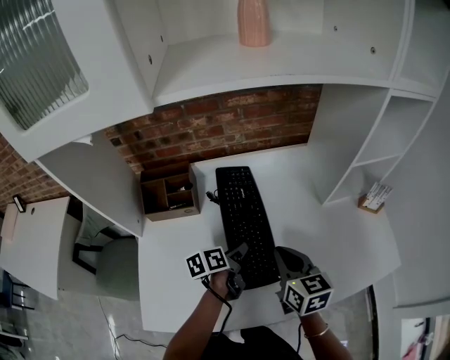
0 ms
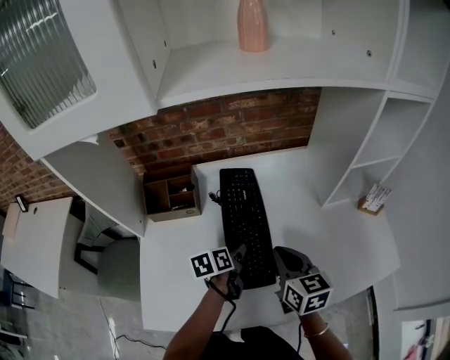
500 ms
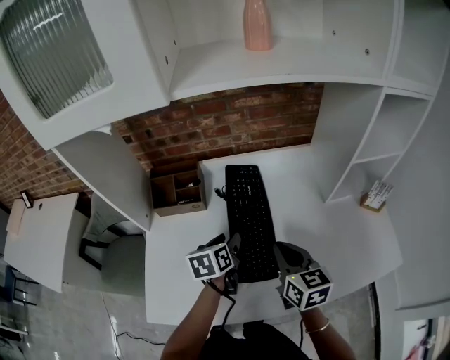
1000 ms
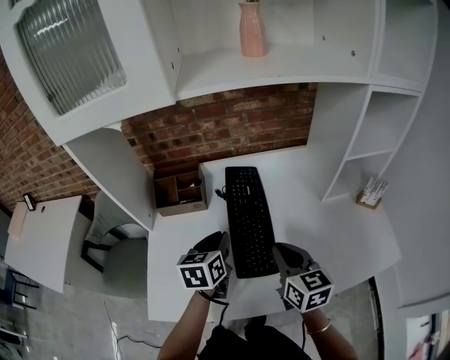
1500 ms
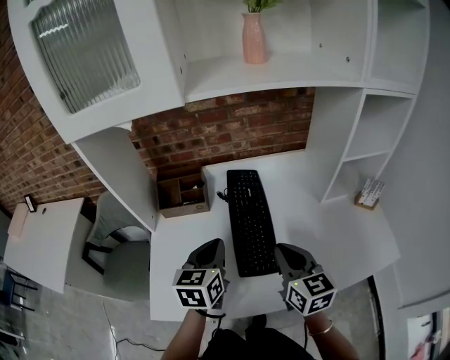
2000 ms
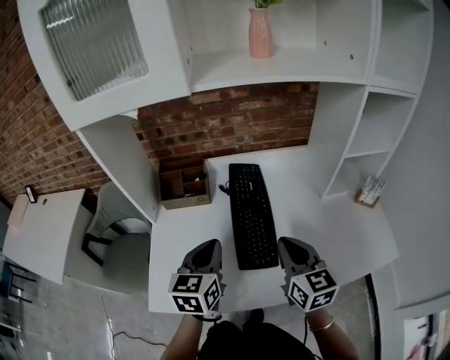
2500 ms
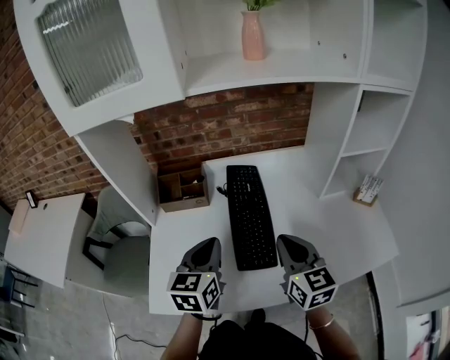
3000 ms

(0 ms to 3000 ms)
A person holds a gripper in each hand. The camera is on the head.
0 ms - 1500 ms: The left gripper moves upward and to the left, roughly 15 cm, and swivels some 40 degrees; the right gripper changes place by roughly 5 cm.
1500 ms - 3000 ms: The left gripper goes about 10 cm backward and upward.

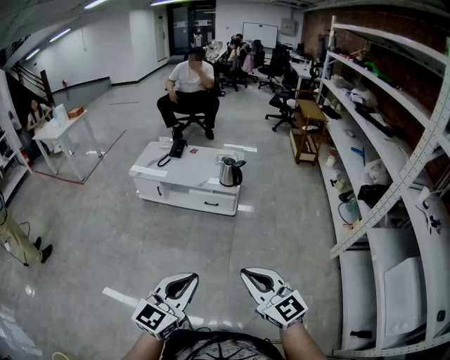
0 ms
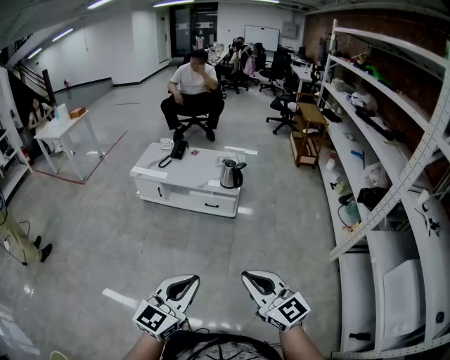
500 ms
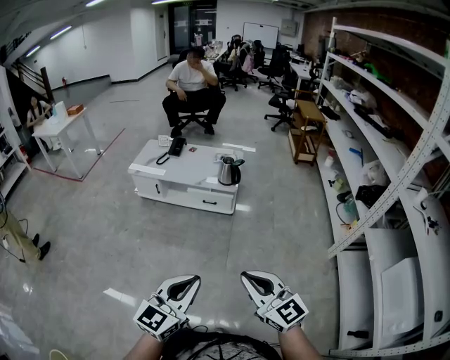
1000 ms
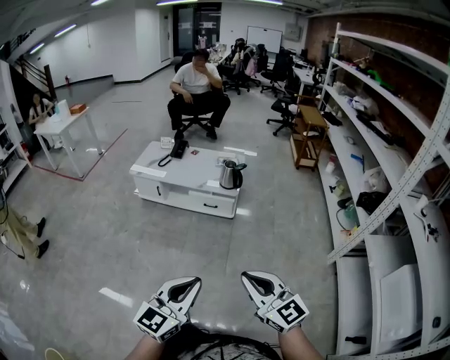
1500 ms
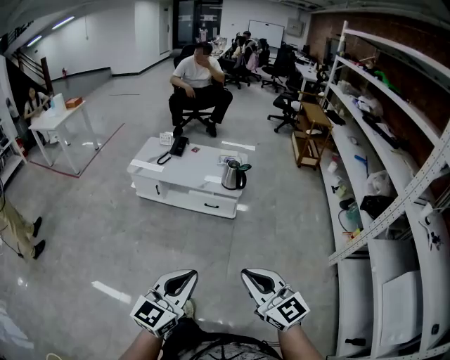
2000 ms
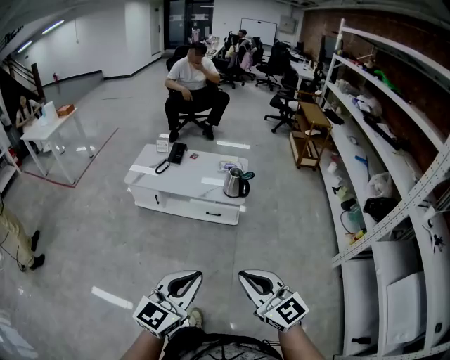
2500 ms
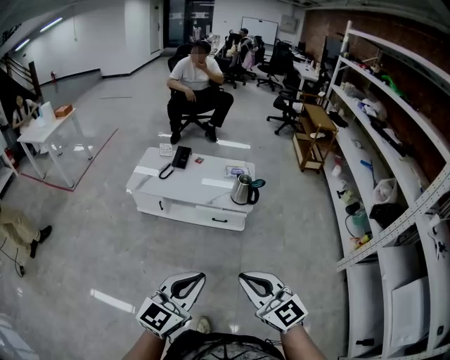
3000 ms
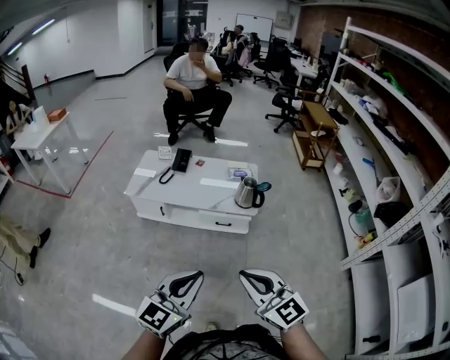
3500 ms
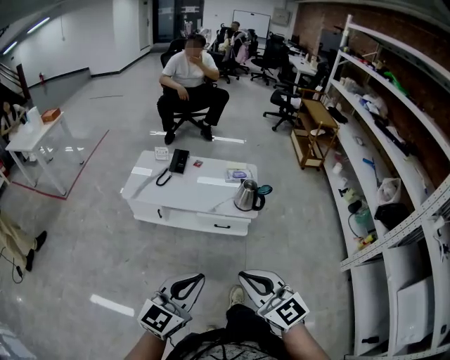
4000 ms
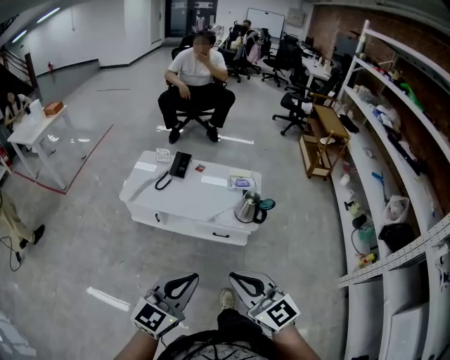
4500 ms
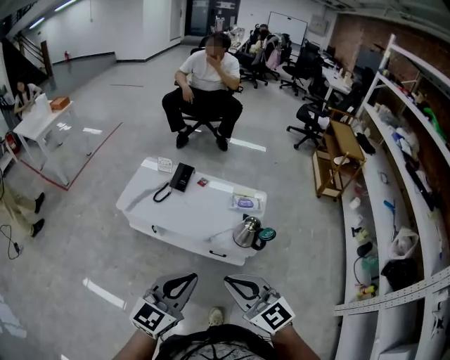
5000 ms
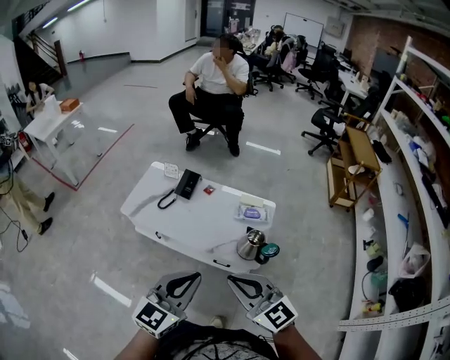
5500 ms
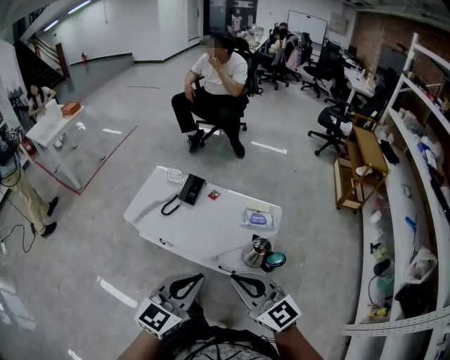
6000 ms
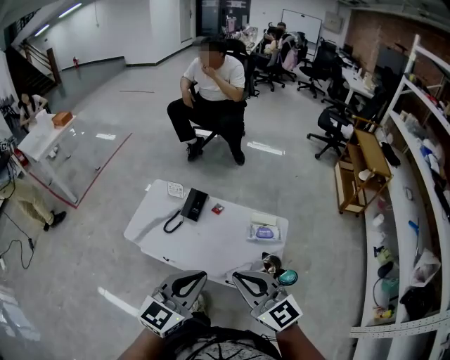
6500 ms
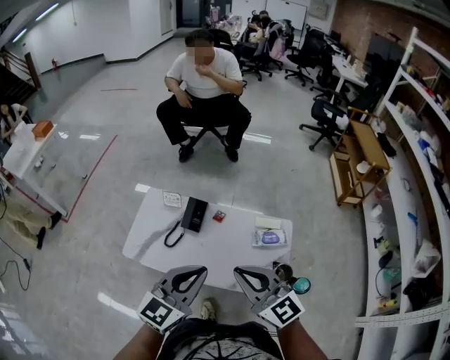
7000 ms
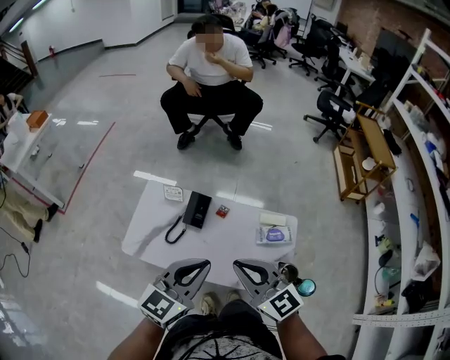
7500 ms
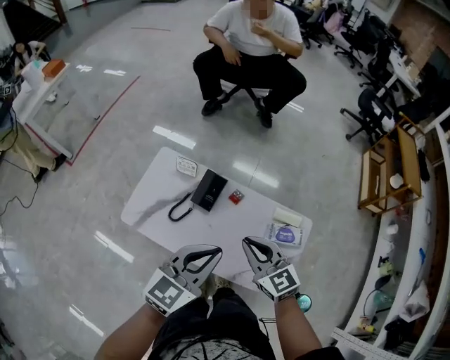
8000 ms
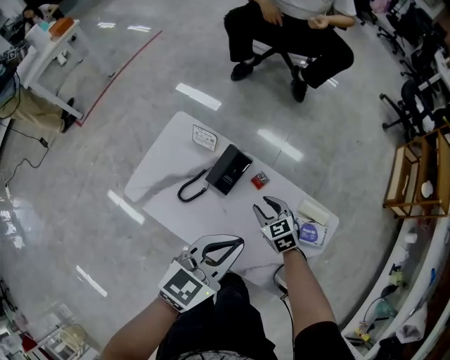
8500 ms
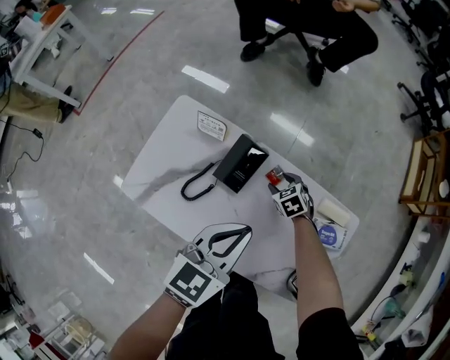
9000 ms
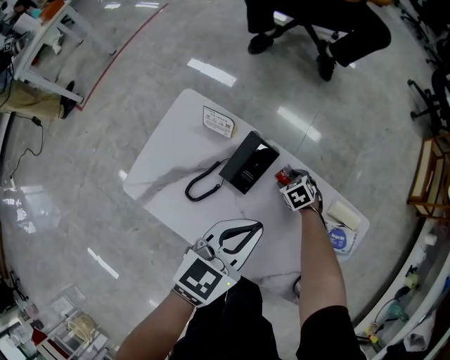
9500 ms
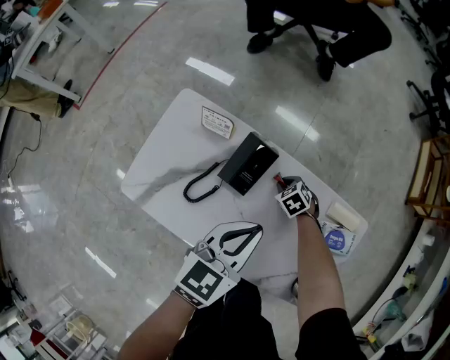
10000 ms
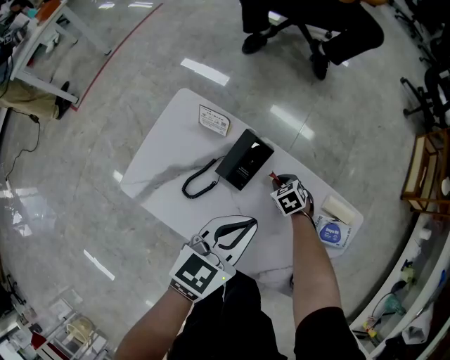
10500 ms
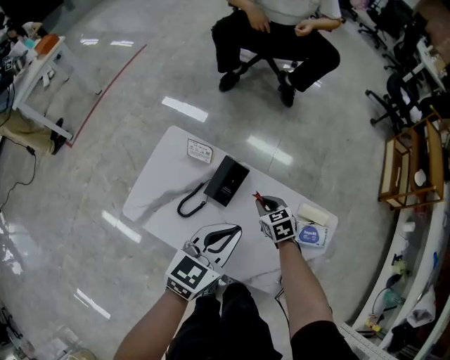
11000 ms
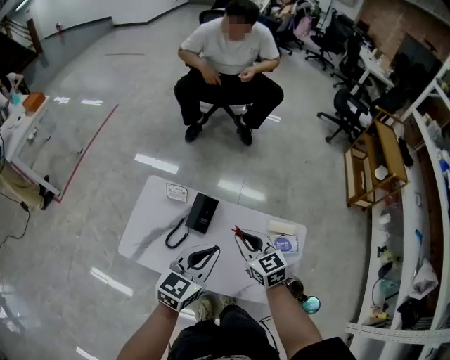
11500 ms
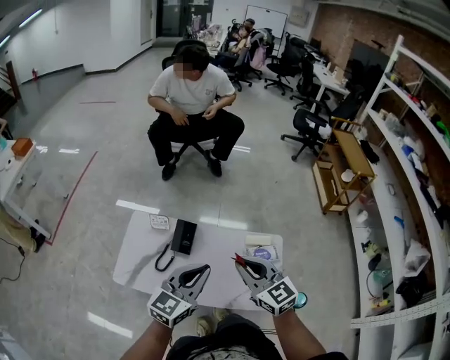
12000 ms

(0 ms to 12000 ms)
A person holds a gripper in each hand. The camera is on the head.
0 ms - 2000 ms: Both grippers move forward, approximately 5 cm.
2000 ms - 4000 ms: Both grippers travel together forward and to the left, about 30 cm.
4000 ms - 6000 ms: Both grippers move forward, some 35 cm.
6000 ms - 8000 ms: The two grippers go approximately 35 cm forward. The right gripper turns by approximately 20 degrees.
8000 ms - 10000 ms: The right gripper is displaced downward and forward by about 50 cm, tilts its fingers about 50 degrees downward, and opens and closes again. The left gripper travels downward and forward by some 25 cm.
10000 ms - 12000 ms: The left gripper heads upward and backward, covering approximately 30 cm, and swivels roughly 30 degrees; the right gripper moves upward and backward, roughly 60 cm, and points its fingers some 60 degrees further upward.

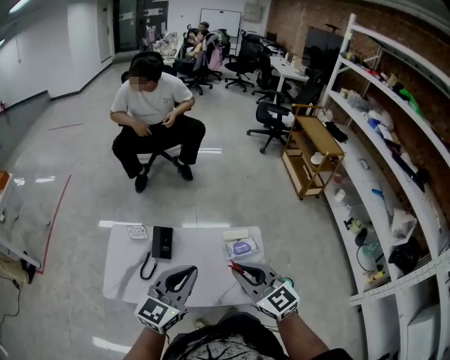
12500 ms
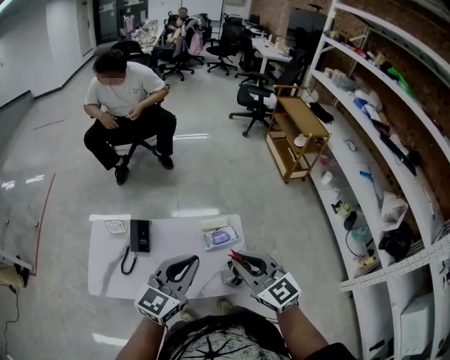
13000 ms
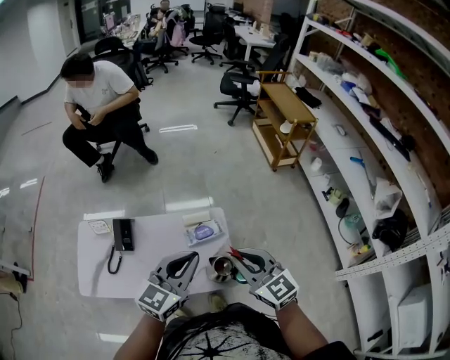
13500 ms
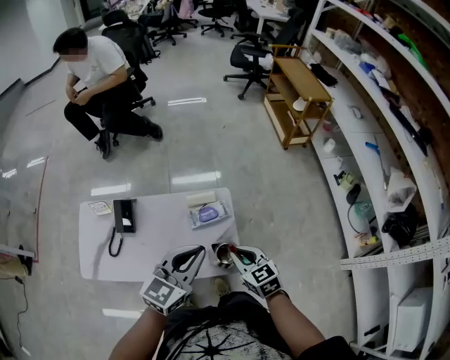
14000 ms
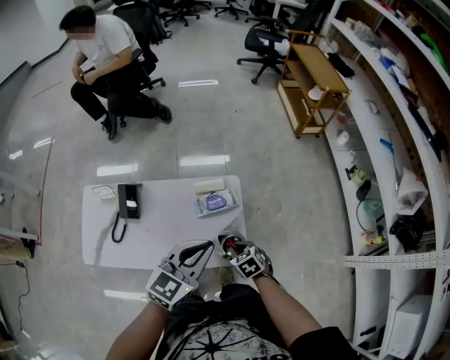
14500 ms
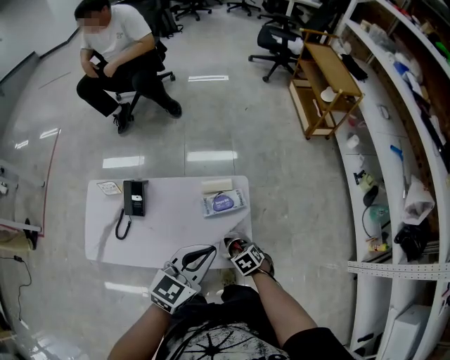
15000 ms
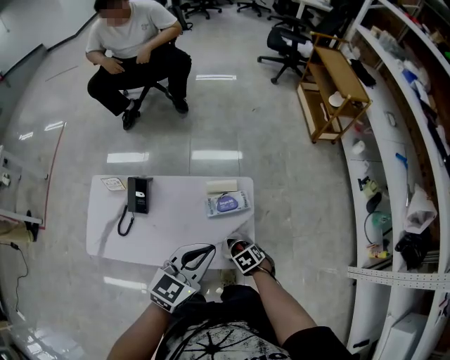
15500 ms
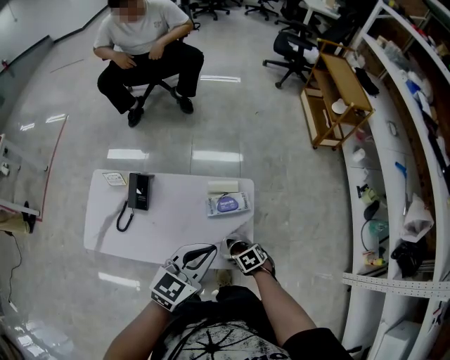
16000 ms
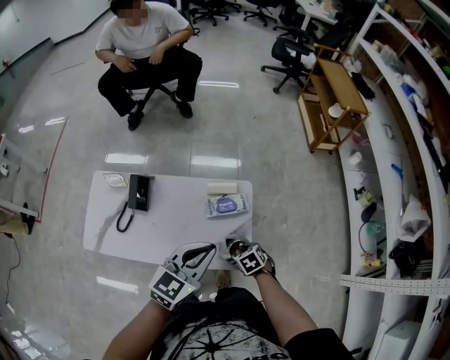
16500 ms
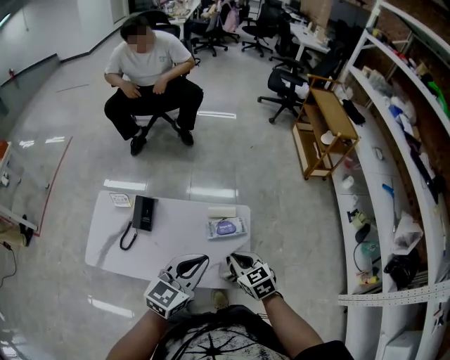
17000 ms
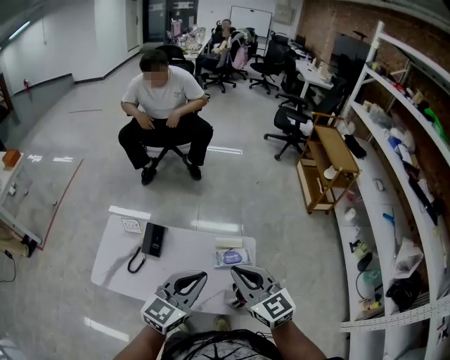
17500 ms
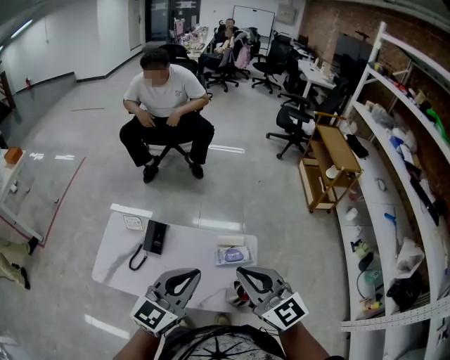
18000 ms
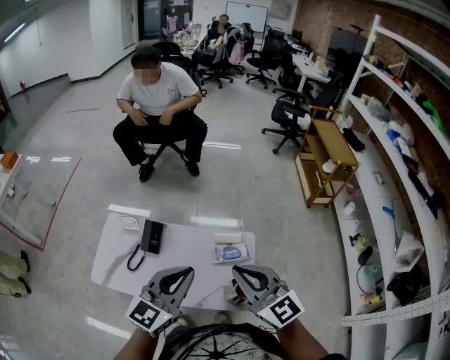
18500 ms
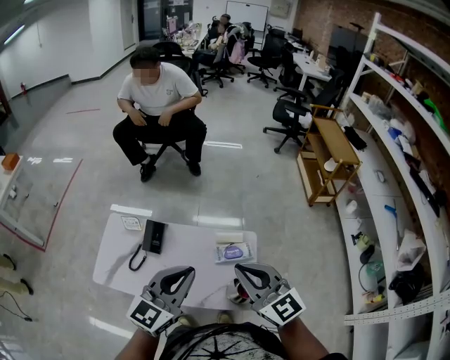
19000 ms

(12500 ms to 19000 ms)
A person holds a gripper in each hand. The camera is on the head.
12500 ms - 14500 ms: The left gripper shifts some 25 cm to the right. The right gripper shifts approximately 40 cm downward and to the right, and angles its fingers downward, by some 50 degrees.
14500 ms - 17000 ms: The right gripper is displaced upward by about 15 cm, turns by roughly 20 degrees, and opens, then closes once more. The left gripper ends up about 5 cm from where it was.
17000 ms - 19000 ms: The left gripper travels upward and to the left by approximately 10 cm, while the right gripper travels upward by some 25 cm, and points its fingers some 40 degrees further upward.

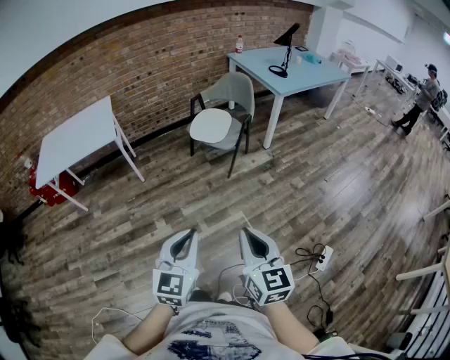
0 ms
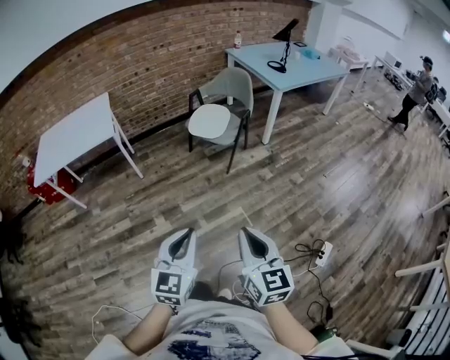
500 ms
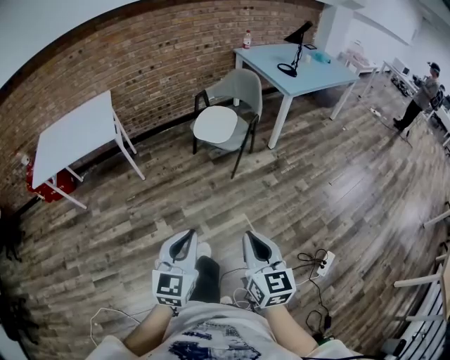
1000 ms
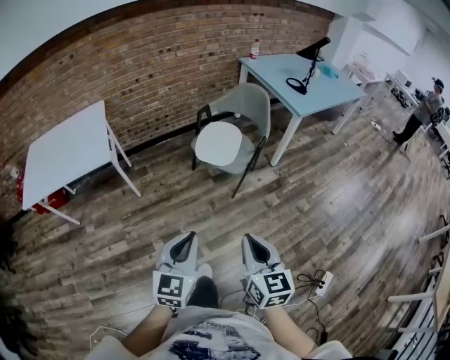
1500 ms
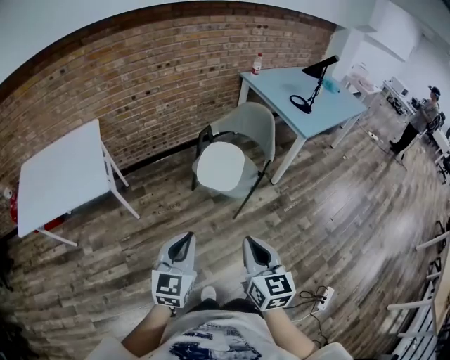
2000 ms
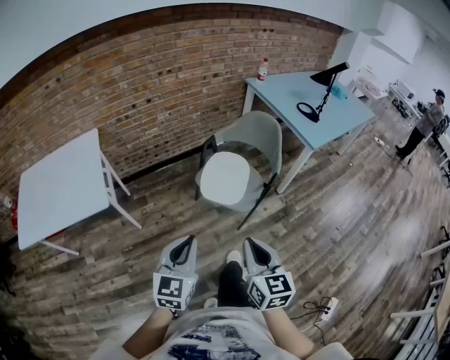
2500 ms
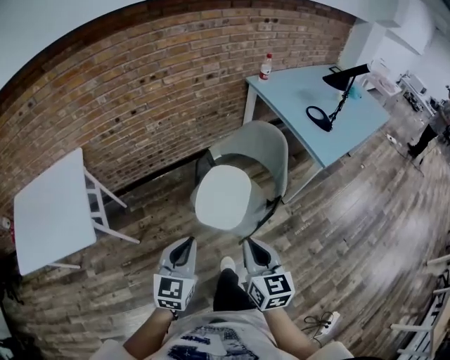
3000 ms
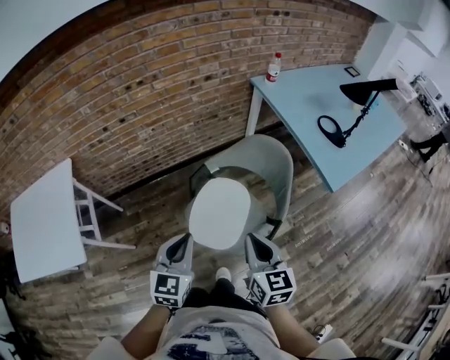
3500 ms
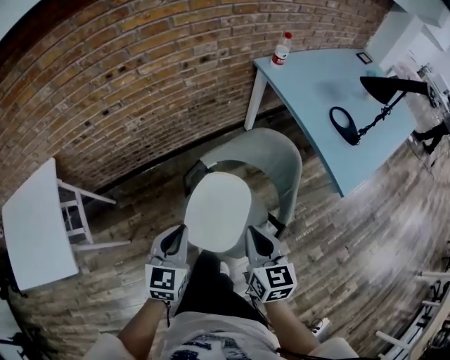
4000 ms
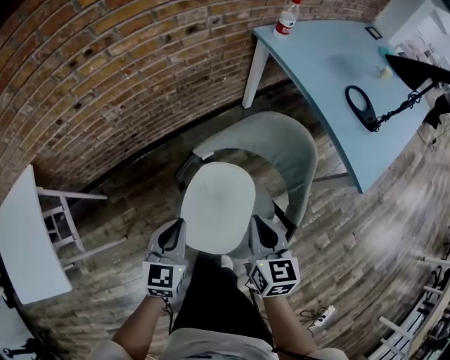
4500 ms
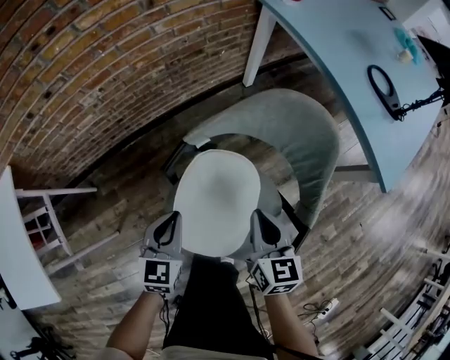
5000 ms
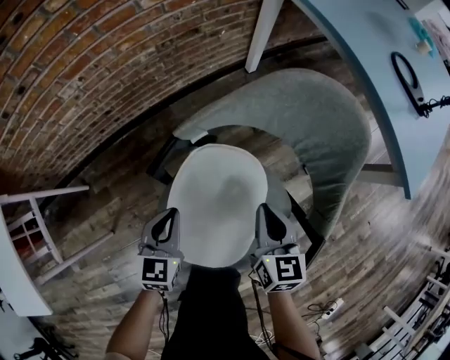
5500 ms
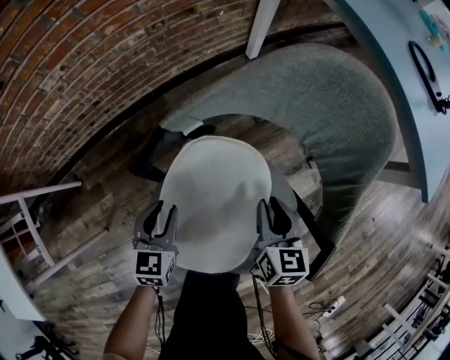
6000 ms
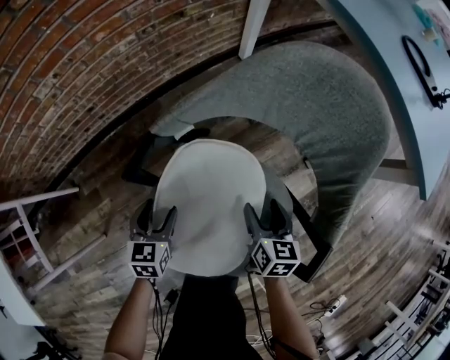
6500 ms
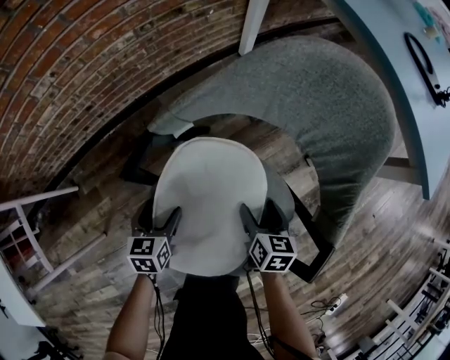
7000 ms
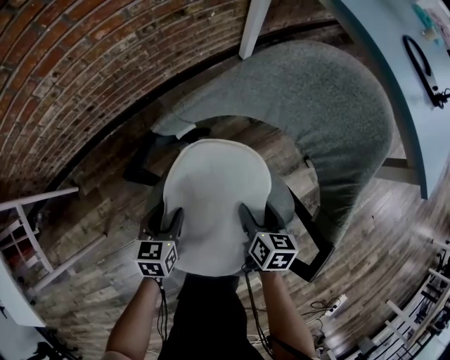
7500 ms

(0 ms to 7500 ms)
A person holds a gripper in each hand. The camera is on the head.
0 ms - 2000 ms: The pair of grippers is taken forward, roughly 40 cm.
2000 ms - 4000 ms: The two grippers travel together, forward, about 60 cm.
4000 ms - 5500 ms: The right gripper heads downward and forward, covering approximately 35 cm; the left gripper is displaced downward by some 35 cm.
5500 ms - 7500 ms: The grippers both shift downward by roughly 15 cm. The left gripper opens up; the right gripper swivels roughly 20 degrees, and opens its fingers.
